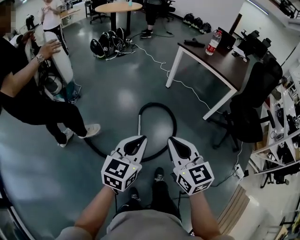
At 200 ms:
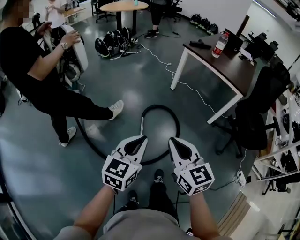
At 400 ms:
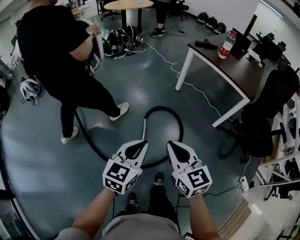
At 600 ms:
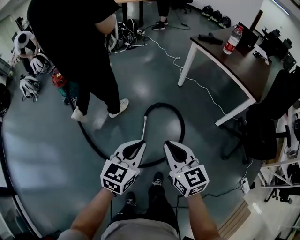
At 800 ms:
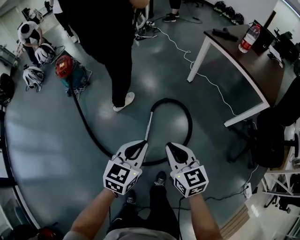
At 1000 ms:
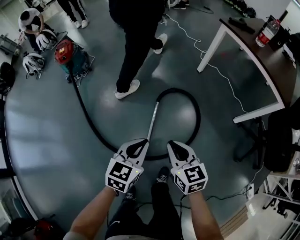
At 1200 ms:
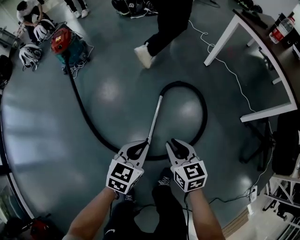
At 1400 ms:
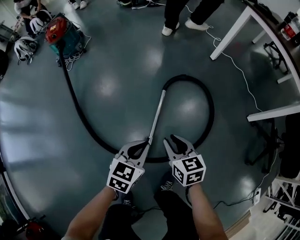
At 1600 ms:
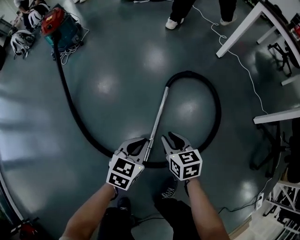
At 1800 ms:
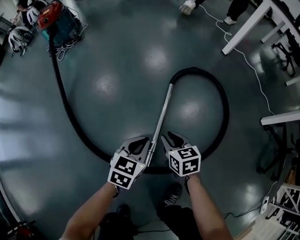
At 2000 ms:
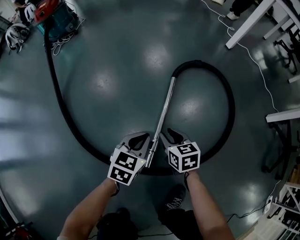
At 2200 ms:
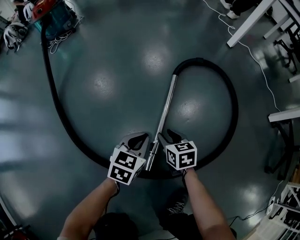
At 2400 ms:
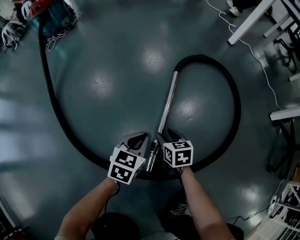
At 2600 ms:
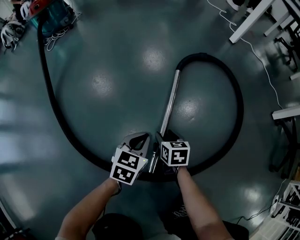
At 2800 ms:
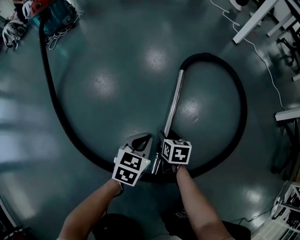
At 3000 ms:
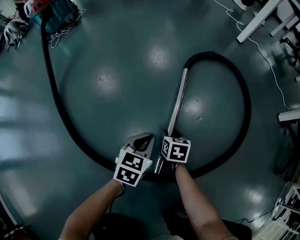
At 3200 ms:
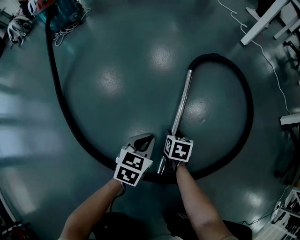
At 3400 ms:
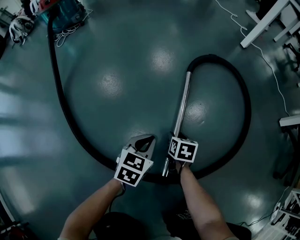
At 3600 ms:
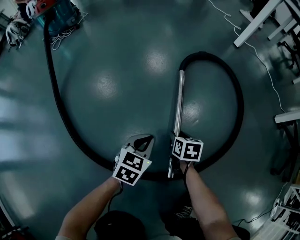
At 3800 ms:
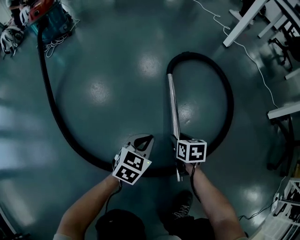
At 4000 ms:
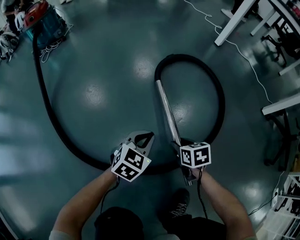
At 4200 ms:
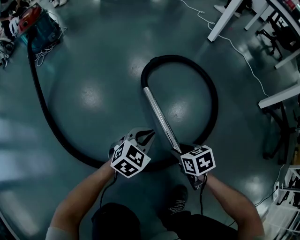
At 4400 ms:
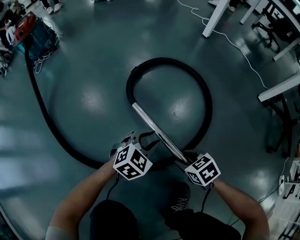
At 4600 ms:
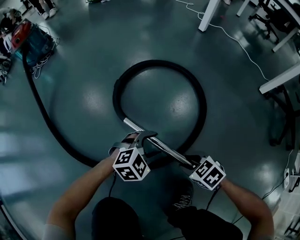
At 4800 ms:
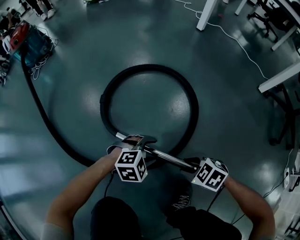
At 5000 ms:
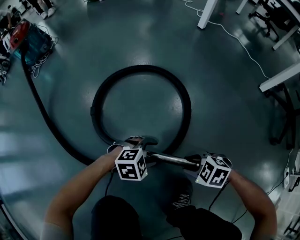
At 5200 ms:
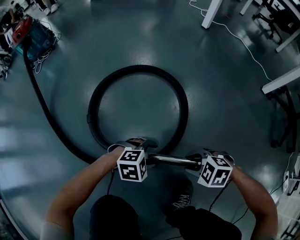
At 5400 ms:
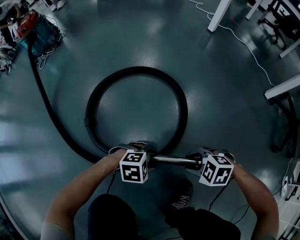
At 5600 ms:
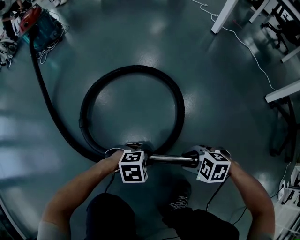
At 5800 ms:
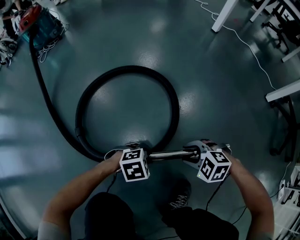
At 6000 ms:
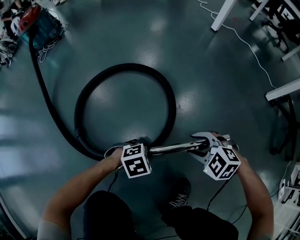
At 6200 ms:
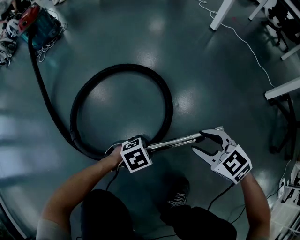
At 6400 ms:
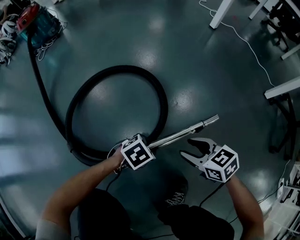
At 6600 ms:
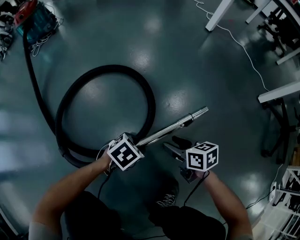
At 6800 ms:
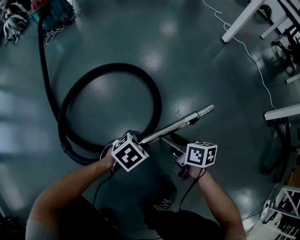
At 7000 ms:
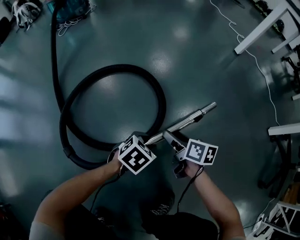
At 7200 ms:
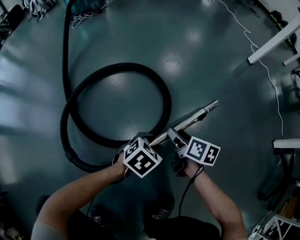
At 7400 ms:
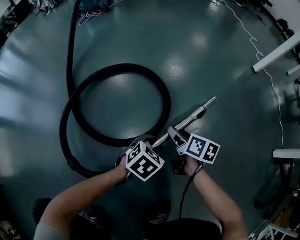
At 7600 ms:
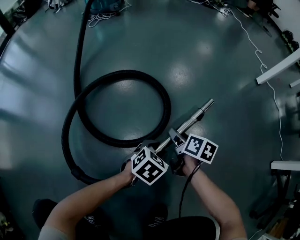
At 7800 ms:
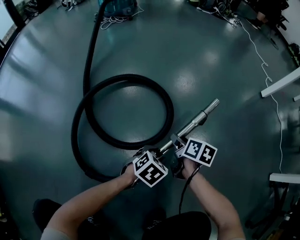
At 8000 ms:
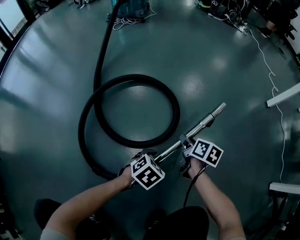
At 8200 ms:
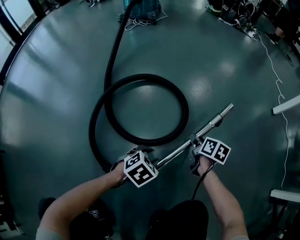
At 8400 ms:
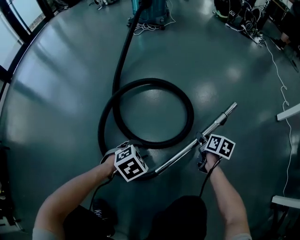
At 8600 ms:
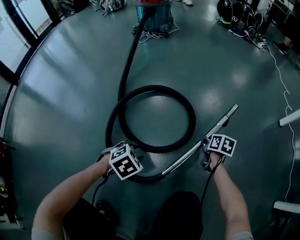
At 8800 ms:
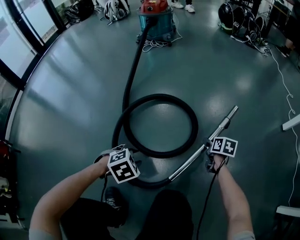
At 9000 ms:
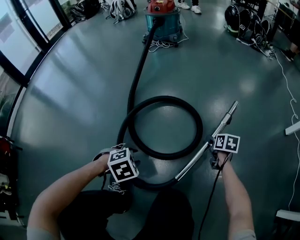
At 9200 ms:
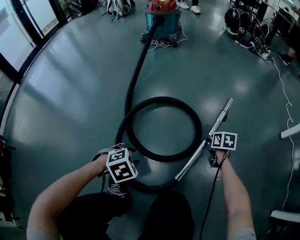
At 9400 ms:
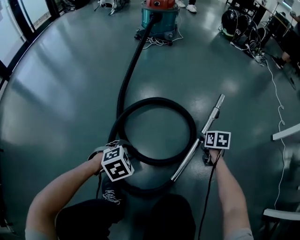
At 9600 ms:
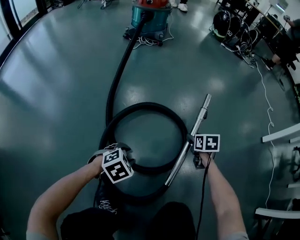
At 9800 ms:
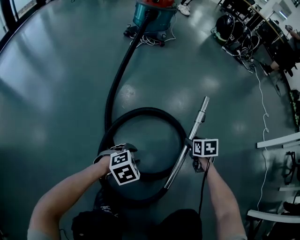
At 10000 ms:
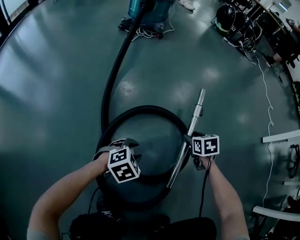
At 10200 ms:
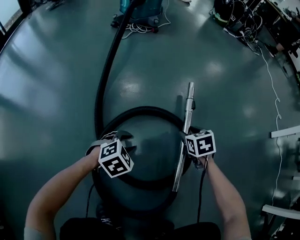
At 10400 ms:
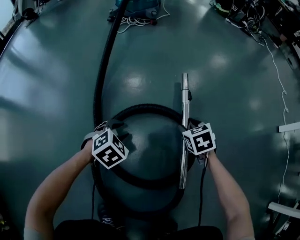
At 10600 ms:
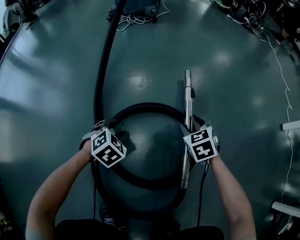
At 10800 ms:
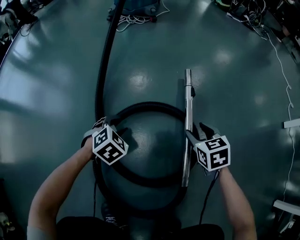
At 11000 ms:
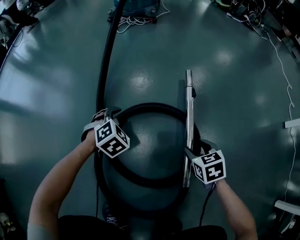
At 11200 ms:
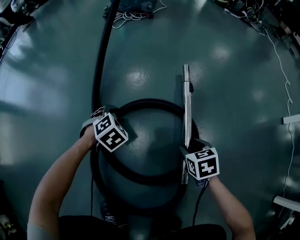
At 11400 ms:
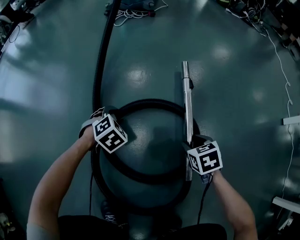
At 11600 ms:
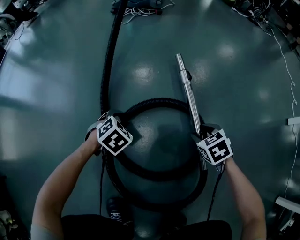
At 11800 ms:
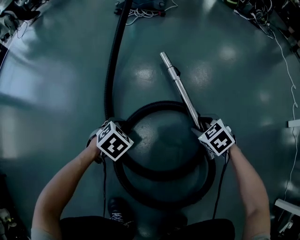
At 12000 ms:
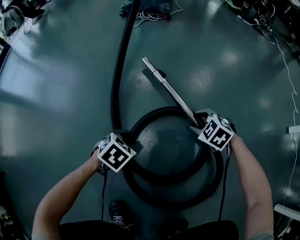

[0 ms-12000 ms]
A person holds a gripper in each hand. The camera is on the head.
0 ms to 1600 ms: The two grippers go roughly 60 cm downward. The right gripper turns by roughly 30 degrees; the left gripper swivels roughly 30 degrees.
1600 ms to 3000 ms: The grippers both shift downward by roughly 30 cm. The right gripper swivels roughly 30 degrees, and opens up.
3000 ms to 4400 ms: The right gripper travels backward, to the right and upward by roughly 20 cm, and changes its angle by about 30 degrees, while the left gripper moves to the right, about 10 cm, swivels about 40 degrees, and opens its fingers.
4400 ms to 6000 ms: The right gripper moves approximately 5 cm, and twists approximately 50 degrees counterclockwise, seen from behind. The left gripper changes place by some 10 cm, turns by approximately 30 degrees, and opens, then closes again.
6000 ms to 7600 ms: The left gripper changes place by approximately 10 cm, and rolls counterclockwise, seen from behind, by about 50 degrees, while the right gripper moves about 20 cm, and twists roughly 80 degrees clockwise, seen from behind.
7600 ms to 9000 ms: The left gripper shifts by about 25 cm, and turns by roughly 30 degrees; the right gripper changes place by some 15 cm, and turns by approximately 30 degrees.
9000 ms to 10400 ms: The right gripper moves roughly 25 cm, and changes its angle by roughly 30 degrees. The left gripper changes place by about 35 cm.
10400 ms to 12000 ms: The left gripper heads backward, covering approximately 5 cm, and changes its angle by some 20 degrees; the right gripper moves to the left, roughly 5 cm, moves roughly 10 cm backward and comes back, and turns by approximately 40 degrees.

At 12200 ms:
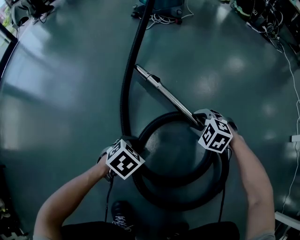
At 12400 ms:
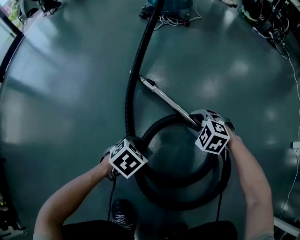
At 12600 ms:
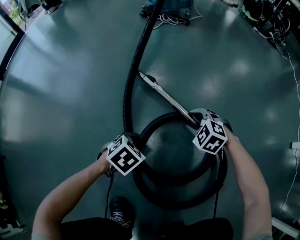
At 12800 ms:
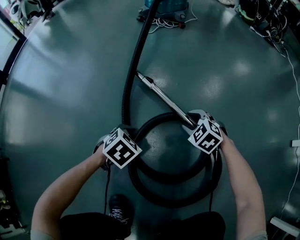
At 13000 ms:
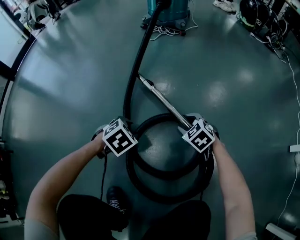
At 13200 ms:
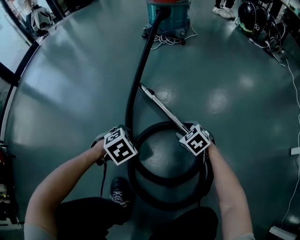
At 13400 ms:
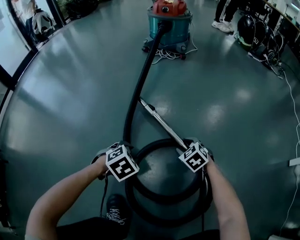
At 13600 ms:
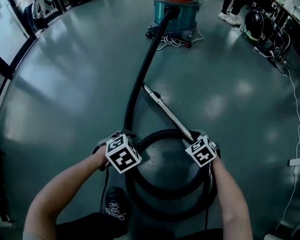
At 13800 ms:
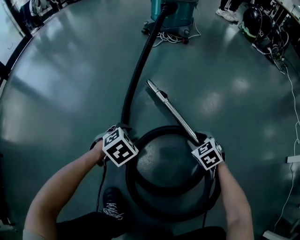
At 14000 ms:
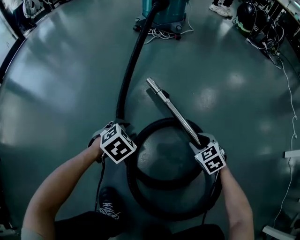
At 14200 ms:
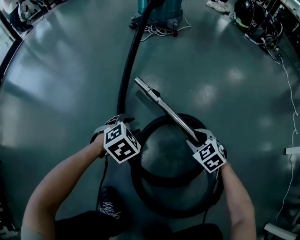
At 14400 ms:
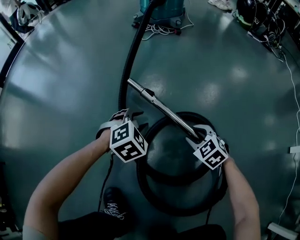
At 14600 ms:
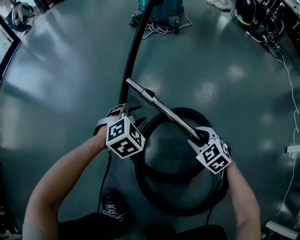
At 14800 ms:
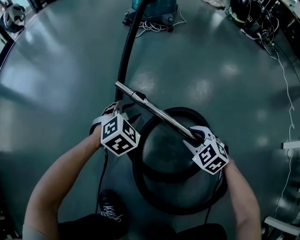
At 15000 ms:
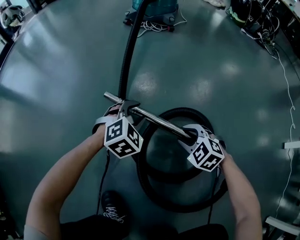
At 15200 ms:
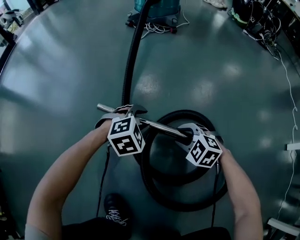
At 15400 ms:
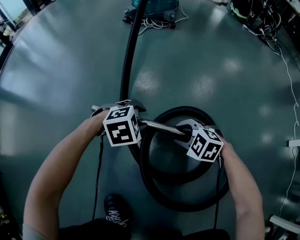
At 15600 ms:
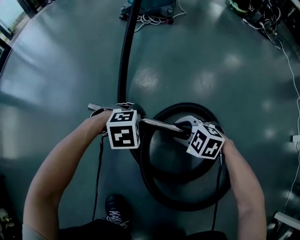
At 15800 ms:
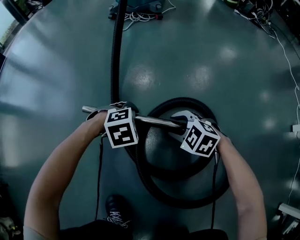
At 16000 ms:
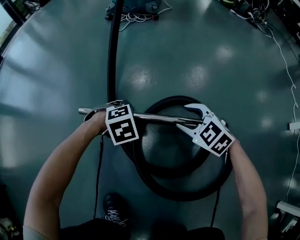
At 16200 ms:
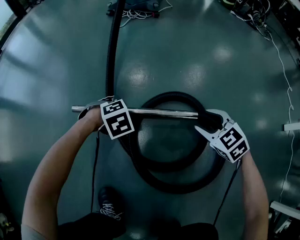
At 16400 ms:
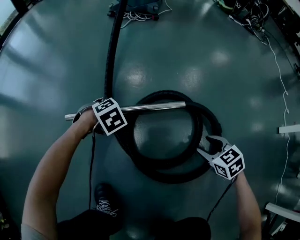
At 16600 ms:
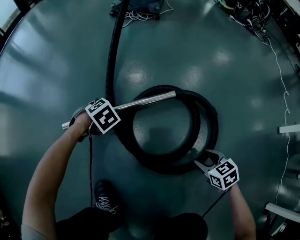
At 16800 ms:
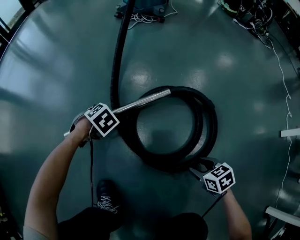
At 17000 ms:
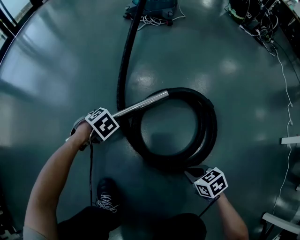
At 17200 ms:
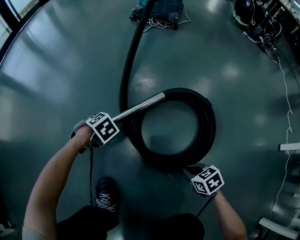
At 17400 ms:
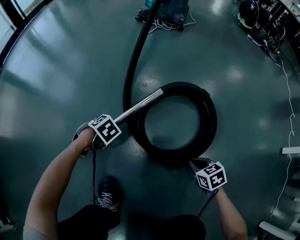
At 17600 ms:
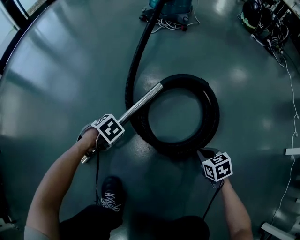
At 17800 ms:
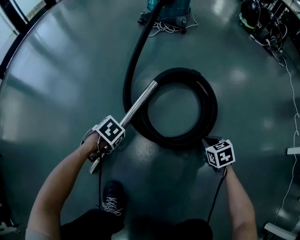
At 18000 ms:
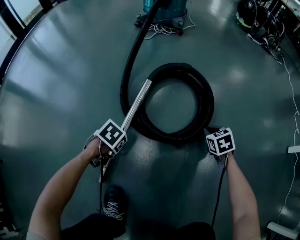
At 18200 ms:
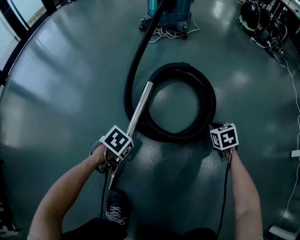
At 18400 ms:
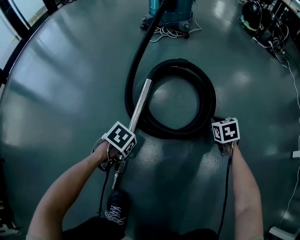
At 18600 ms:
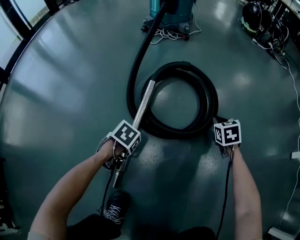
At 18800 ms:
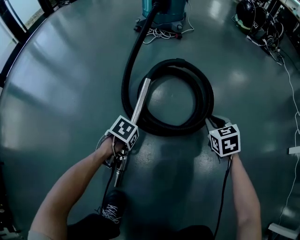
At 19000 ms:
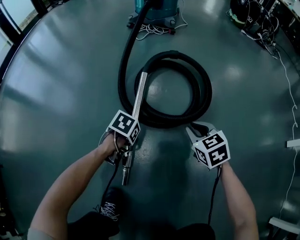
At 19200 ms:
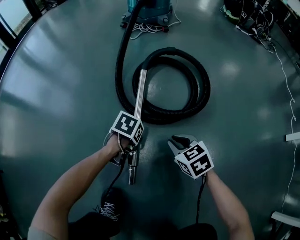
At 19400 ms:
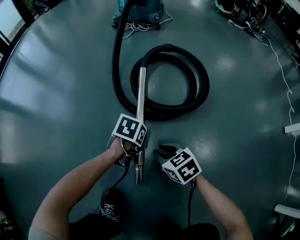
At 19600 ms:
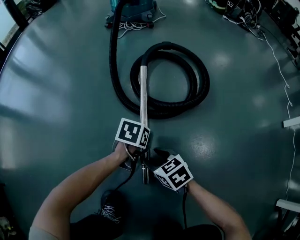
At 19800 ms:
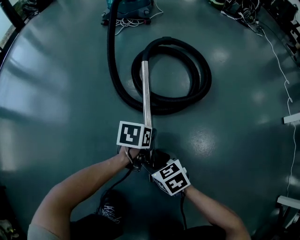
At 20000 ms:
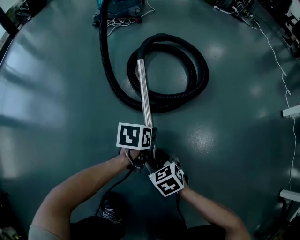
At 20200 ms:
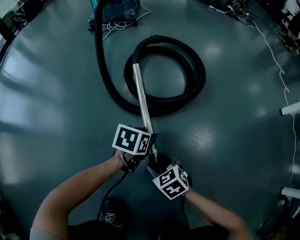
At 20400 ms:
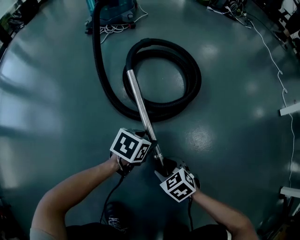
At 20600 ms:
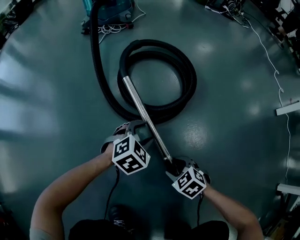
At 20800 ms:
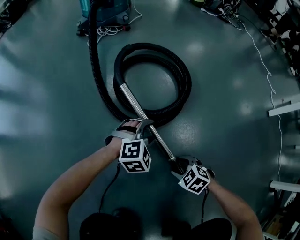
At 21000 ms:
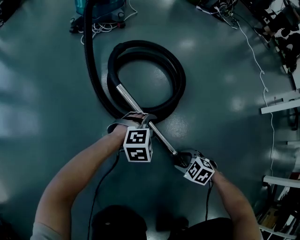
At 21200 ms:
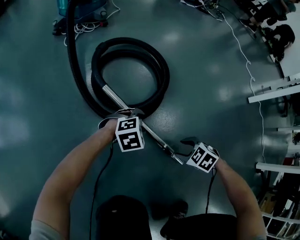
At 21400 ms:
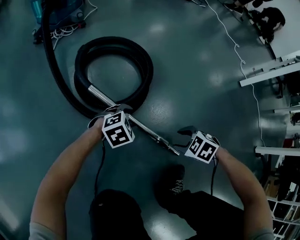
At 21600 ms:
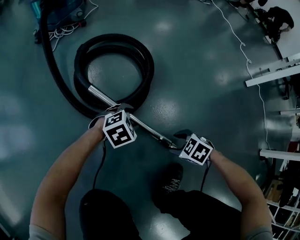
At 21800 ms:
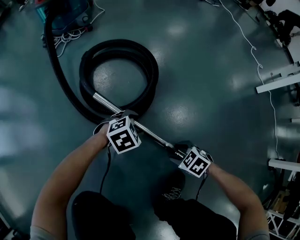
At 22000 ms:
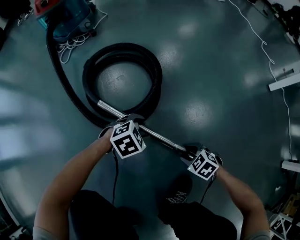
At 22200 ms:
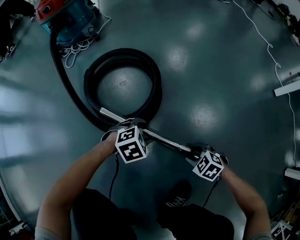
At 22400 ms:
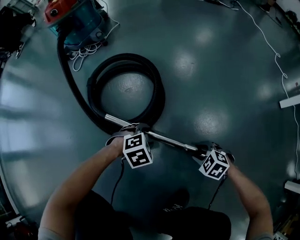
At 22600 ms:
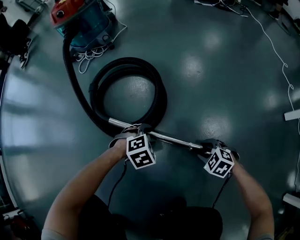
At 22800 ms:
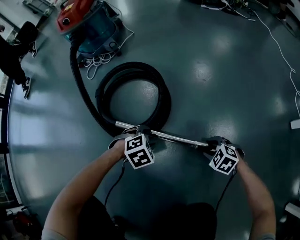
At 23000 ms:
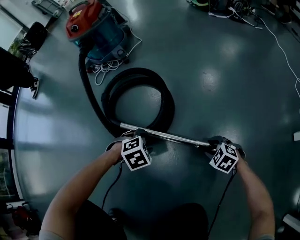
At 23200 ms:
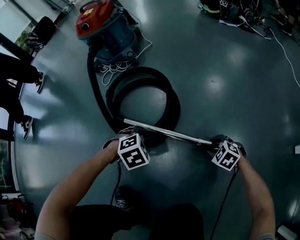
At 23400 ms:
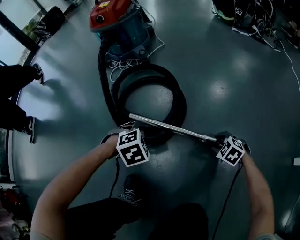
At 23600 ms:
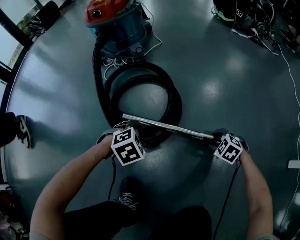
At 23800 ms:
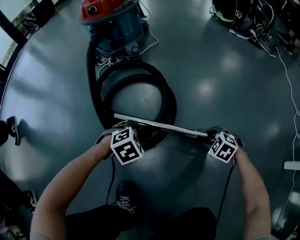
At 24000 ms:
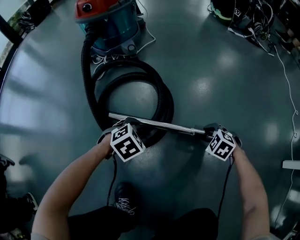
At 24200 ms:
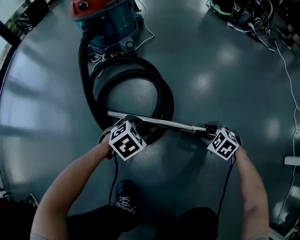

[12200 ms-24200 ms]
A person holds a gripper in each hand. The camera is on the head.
12200 ms to 13800 ms: The right gripper swivels approximately 30 degrees; the left gripper shifts by some 10 cm.
13800 ms to 15200 ms: The left gripper moves to the right and forward, approximately 10 cm, and changes its angle by roughly 30 degrees. The right gripper moves to the left, approximately 5 cm, and swivels about 30 degrees.
15200 ms to 16600 ms: The right gripper shifts by approximately 25 cm, and rotates around the line of its fingers by some 50 degrees, clockwise from behind. Meanwhile the left gripper changes place by some 10 cm, and rotates about 30 degrees.
16600 ms to 18200 ms: The left gripper moves approximately 10 cm, and swivels roughly 30 degrees. Meanwhile the right gripper changes place by about 25 cm, and closes.
18200 ms to 19800 ms: The left gripper ends up roughly 20 cm from where it was, and swivels approximately 30 degrees, while the right gripper goes upward and returns, approximately 10 cm each way, rotates about 20 degrees, and opens.
19800 ms to 21200 ms: The left gripper moves roughly 10 cm, and twists roughly 80 degrees clockwise, seen from behind. The right gripper ends up roughly 20 cm from where it was, and swivels about 30 degrees.
21200 ms to 22600 ms: The left gripper shifts by about 10 cm, and swivels some 20 degrees, while the right gripper ends up about 20 cm from where it was.
22600 ms to 24200 ms: The left gripper ends up about 20 cm from where it was, and turns by about 30 degrees; the right gripper changes place by about 25 cm.
